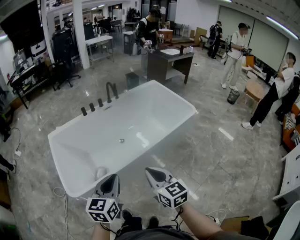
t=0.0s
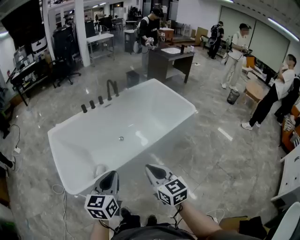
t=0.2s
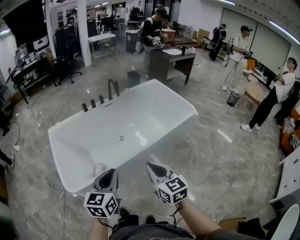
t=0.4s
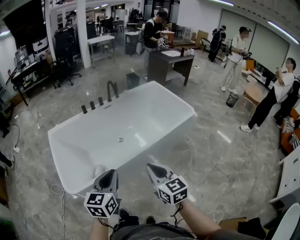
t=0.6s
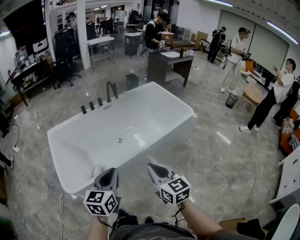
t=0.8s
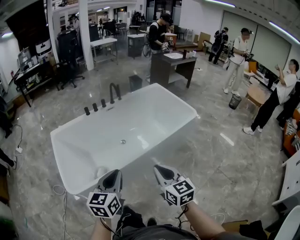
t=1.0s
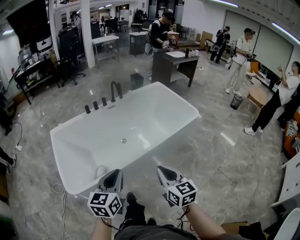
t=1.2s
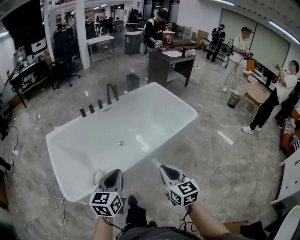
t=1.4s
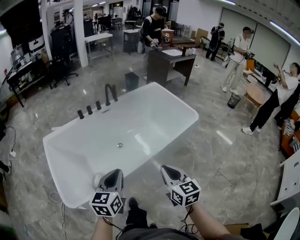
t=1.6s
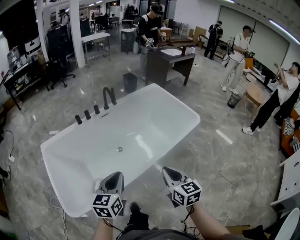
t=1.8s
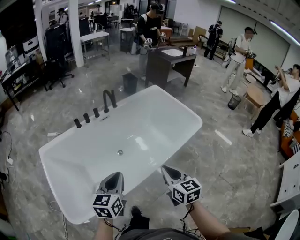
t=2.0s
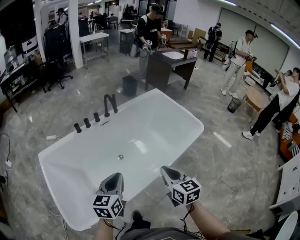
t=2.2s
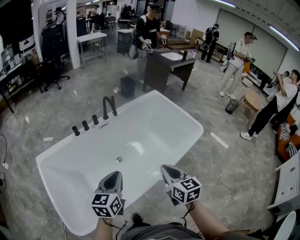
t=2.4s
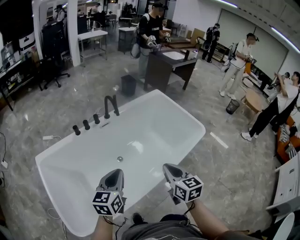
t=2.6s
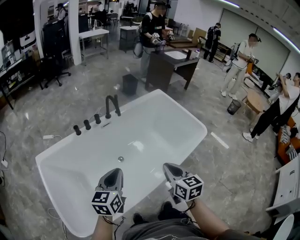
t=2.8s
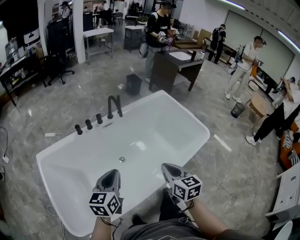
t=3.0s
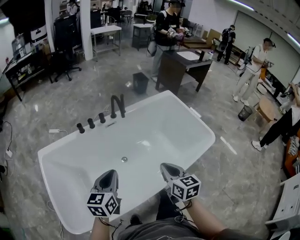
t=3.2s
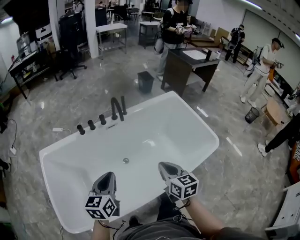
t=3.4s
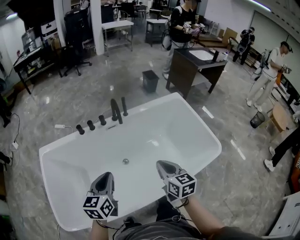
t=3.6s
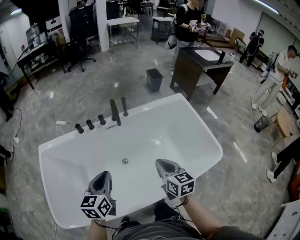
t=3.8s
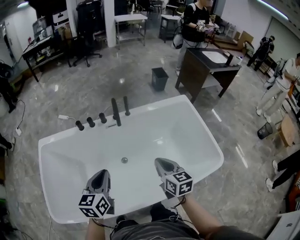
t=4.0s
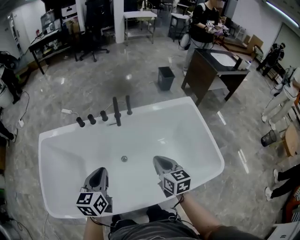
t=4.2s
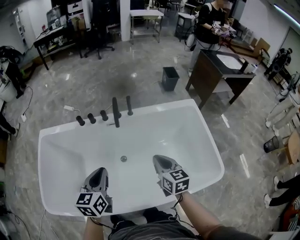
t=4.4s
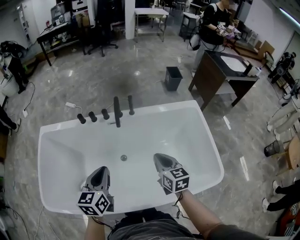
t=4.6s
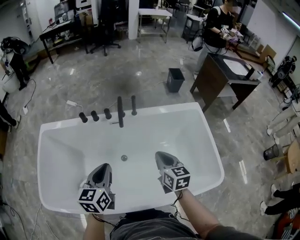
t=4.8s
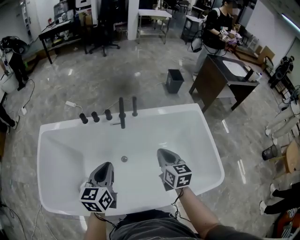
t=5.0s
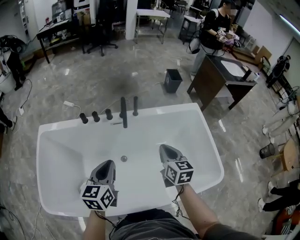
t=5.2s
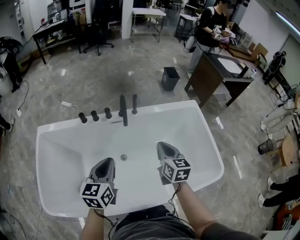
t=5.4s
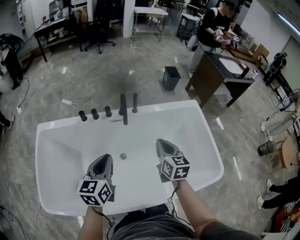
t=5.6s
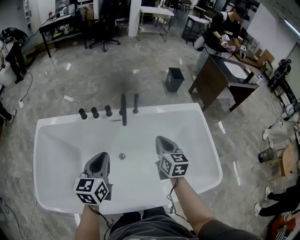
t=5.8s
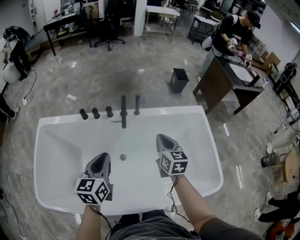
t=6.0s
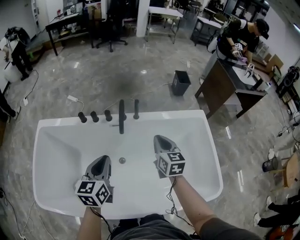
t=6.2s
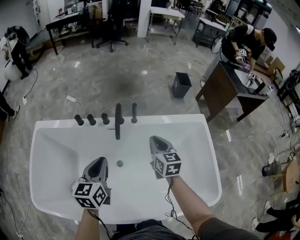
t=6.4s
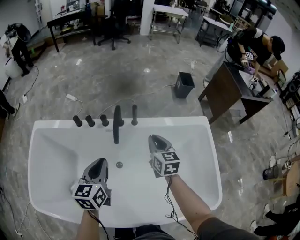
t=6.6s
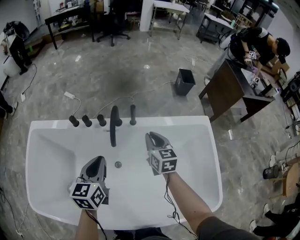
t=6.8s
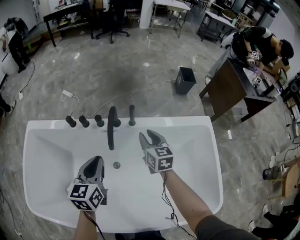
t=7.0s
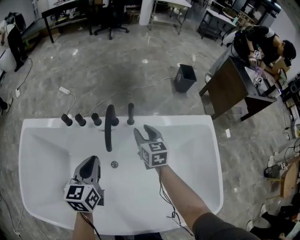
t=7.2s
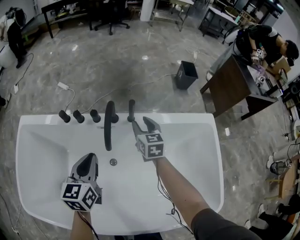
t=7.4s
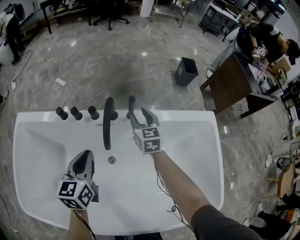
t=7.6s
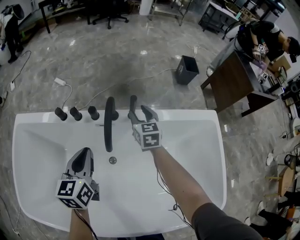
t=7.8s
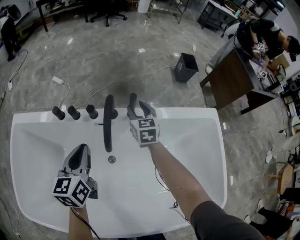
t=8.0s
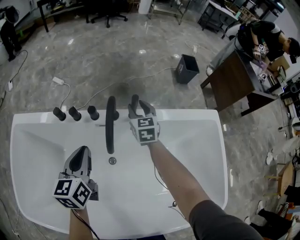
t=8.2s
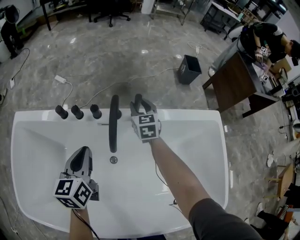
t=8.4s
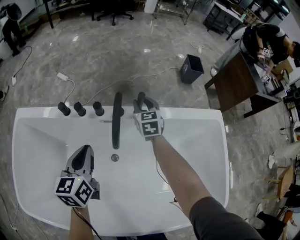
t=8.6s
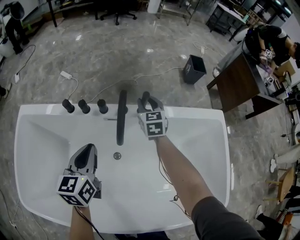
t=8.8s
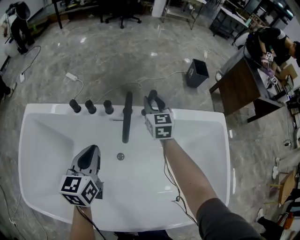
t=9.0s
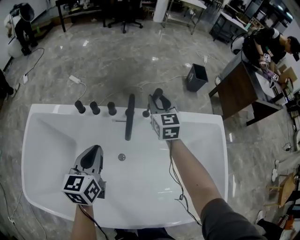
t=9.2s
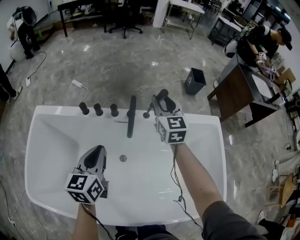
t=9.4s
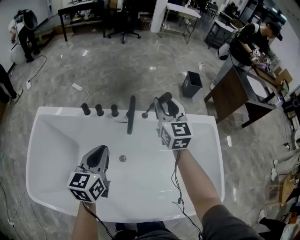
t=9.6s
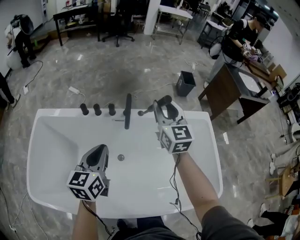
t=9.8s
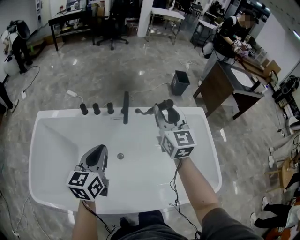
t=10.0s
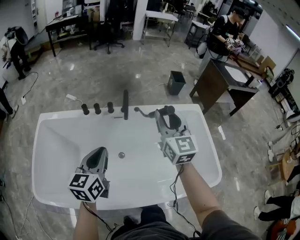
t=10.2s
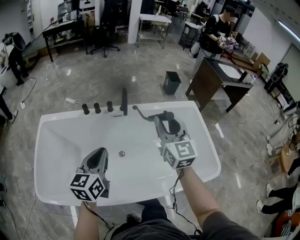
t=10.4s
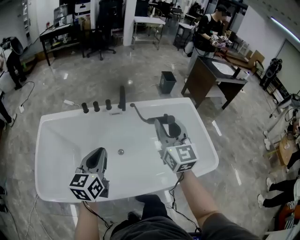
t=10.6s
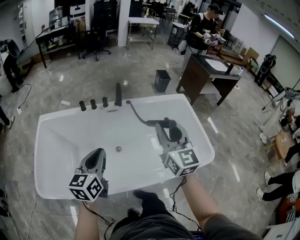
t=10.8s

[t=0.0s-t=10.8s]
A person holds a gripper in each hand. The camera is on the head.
t=0.0s to t=1.6s: The left gripper heads forward, covering some 10 cm, while the right gripper heads forward and to the right, covering approximately 10 cm.
t=1.6s to t=3.0s: Both grippers move forward, roughly 25 cm.
t=3.0s to t=4.6s: The right gripper moves about 30 cm, and rotates about 30 degrees; the left gripper shifts by some 20 cm, and changes its angle by about 30 degrees.
t=4.6s to t=6.2s: The left gripper is displaced forward by roughly 10 cm. The right gripper heads forward, covering some 15 cm.
t=6.2s to t=7.8s: The left gripper travels forward and downward by about 20 cm. Meanwhile the right gripper is displaced forward and downward by roughly 30 cm, and opens its fingers.
t=7.8s to t=9.2s: The left gripper shifts by approximately 5 cm; the right gripper goes roughly 15 cm upward.
t=9.2s to t=10.8s: The right gripper heads backward and upward, covering approximately 50 cm. Meanwhile the left gripper heads backward and upward, covering roughly 30 cm.

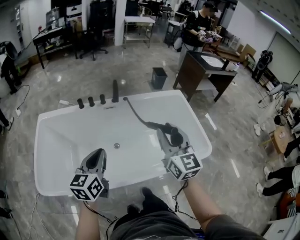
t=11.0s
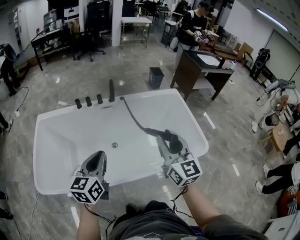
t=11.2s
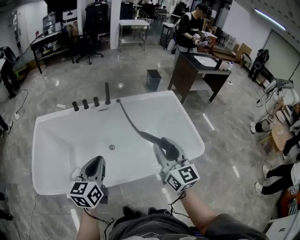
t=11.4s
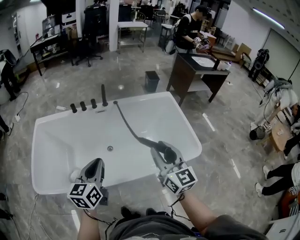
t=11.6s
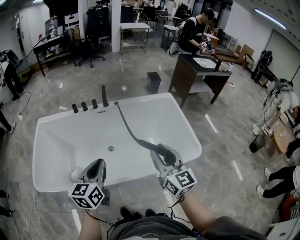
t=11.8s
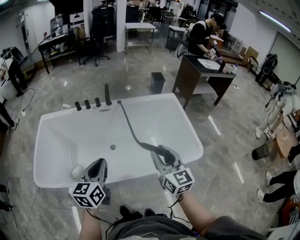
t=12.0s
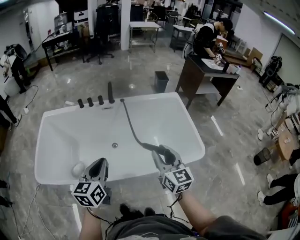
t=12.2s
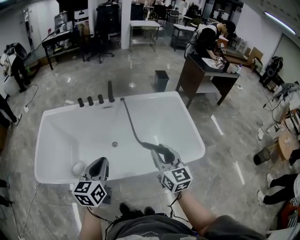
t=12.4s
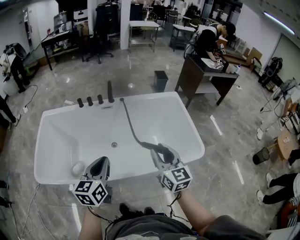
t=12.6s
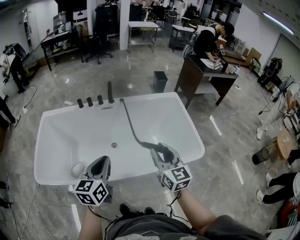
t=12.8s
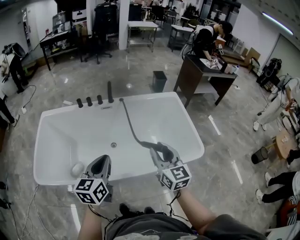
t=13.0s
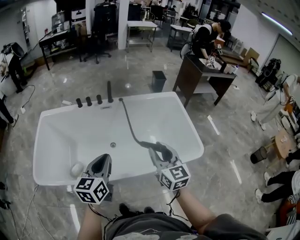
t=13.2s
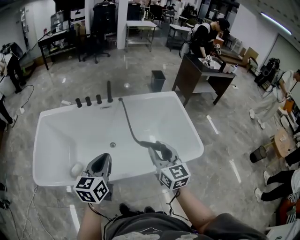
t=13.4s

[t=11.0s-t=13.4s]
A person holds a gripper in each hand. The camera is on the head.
t=11.0s to t=12.2s: The left gripper heads to the right and backward, covering about 15 cm. Meanwhile the right gripper is displaced backward, to the right and downward by about 15 cm.
t=12.2s to t=13.4s: The grippers move only a little.

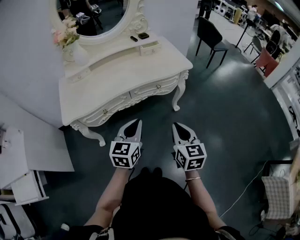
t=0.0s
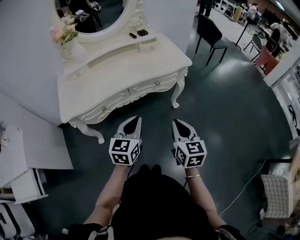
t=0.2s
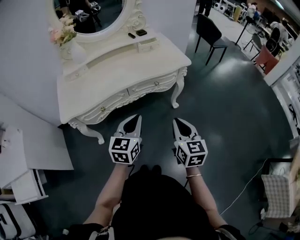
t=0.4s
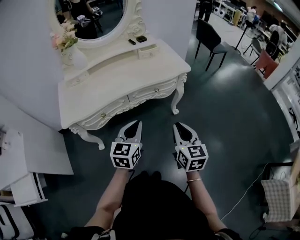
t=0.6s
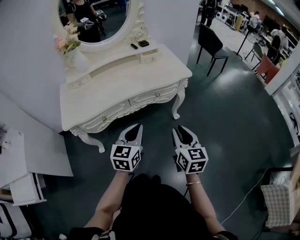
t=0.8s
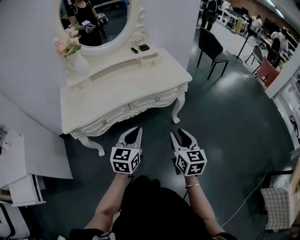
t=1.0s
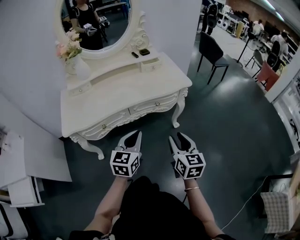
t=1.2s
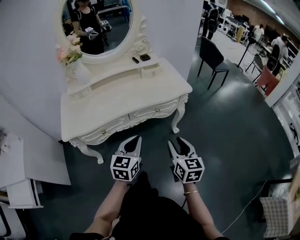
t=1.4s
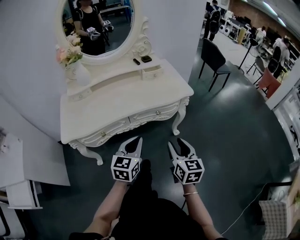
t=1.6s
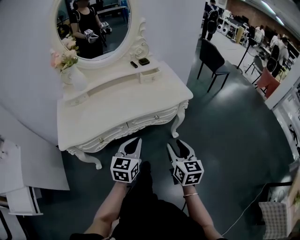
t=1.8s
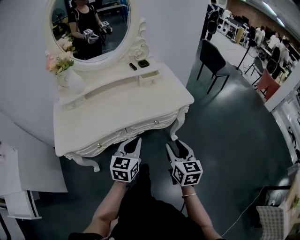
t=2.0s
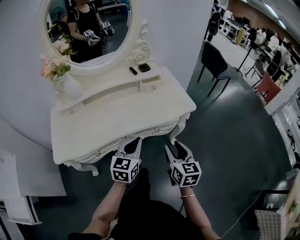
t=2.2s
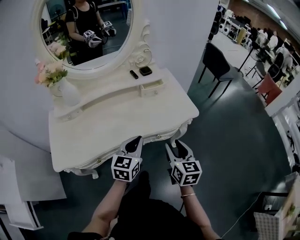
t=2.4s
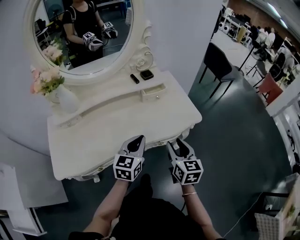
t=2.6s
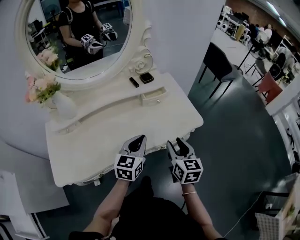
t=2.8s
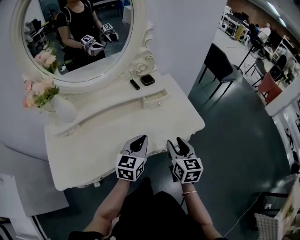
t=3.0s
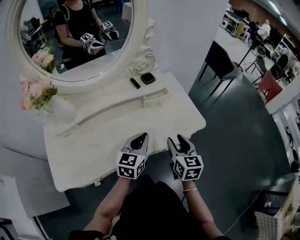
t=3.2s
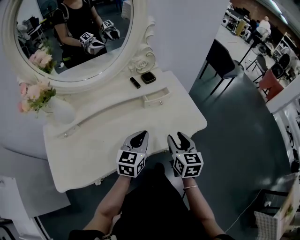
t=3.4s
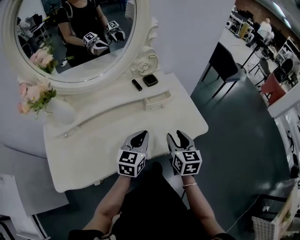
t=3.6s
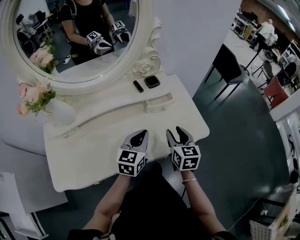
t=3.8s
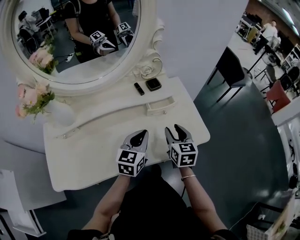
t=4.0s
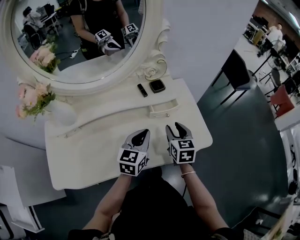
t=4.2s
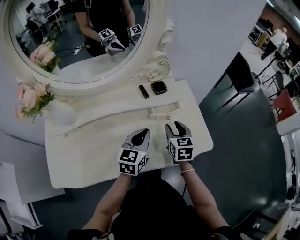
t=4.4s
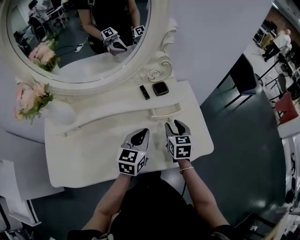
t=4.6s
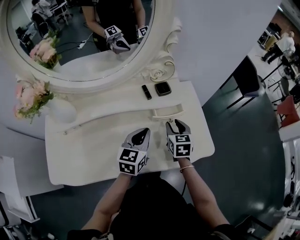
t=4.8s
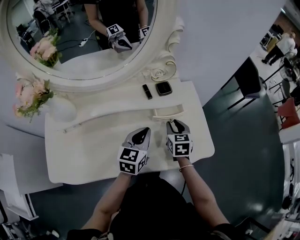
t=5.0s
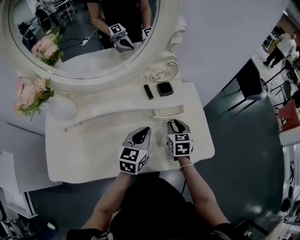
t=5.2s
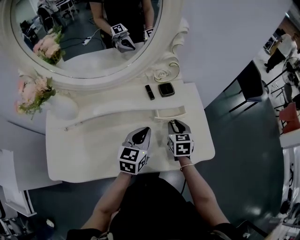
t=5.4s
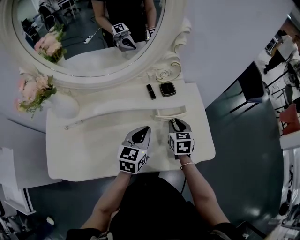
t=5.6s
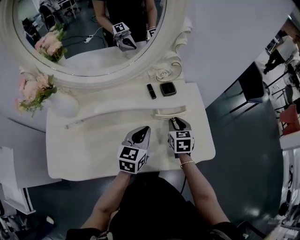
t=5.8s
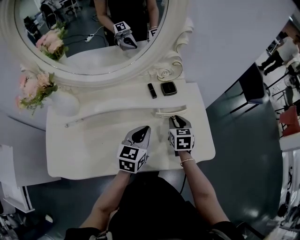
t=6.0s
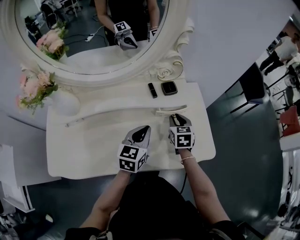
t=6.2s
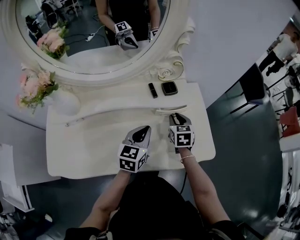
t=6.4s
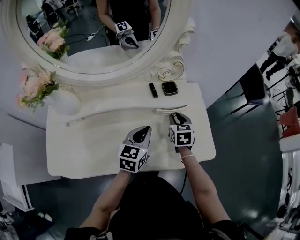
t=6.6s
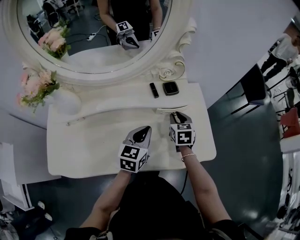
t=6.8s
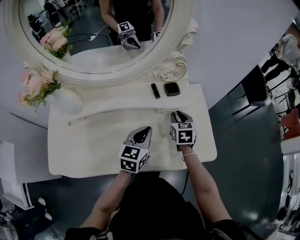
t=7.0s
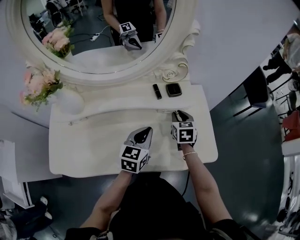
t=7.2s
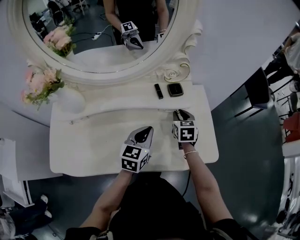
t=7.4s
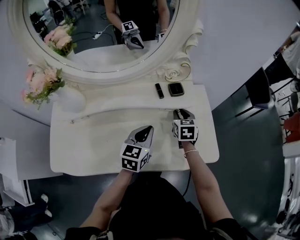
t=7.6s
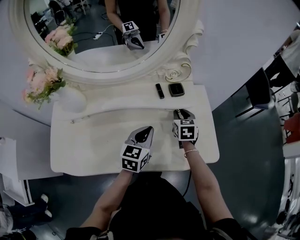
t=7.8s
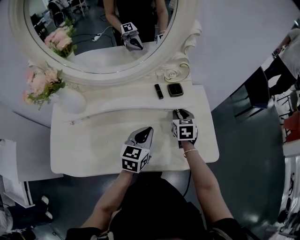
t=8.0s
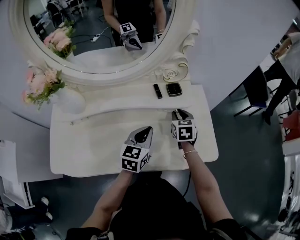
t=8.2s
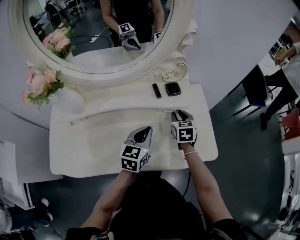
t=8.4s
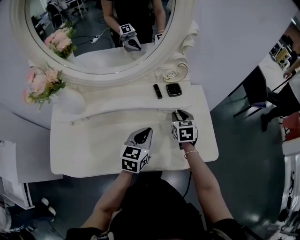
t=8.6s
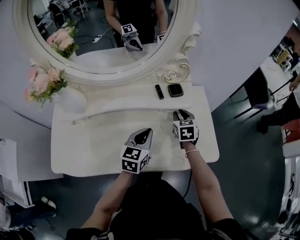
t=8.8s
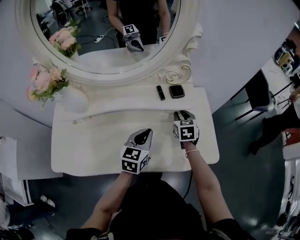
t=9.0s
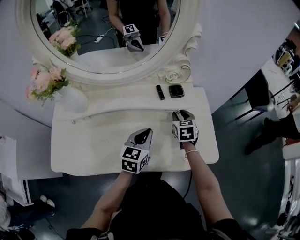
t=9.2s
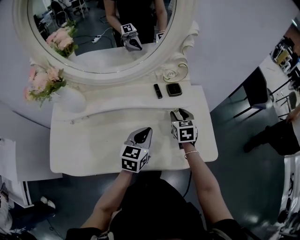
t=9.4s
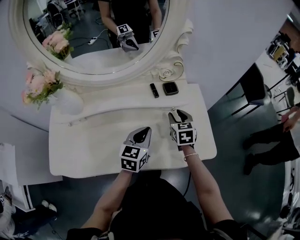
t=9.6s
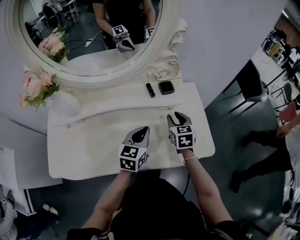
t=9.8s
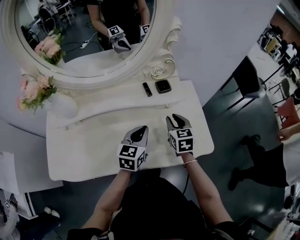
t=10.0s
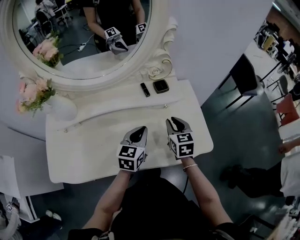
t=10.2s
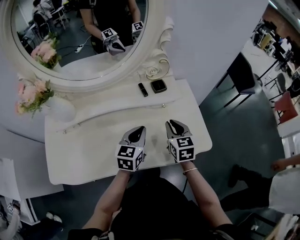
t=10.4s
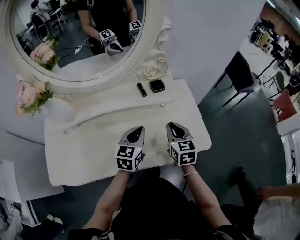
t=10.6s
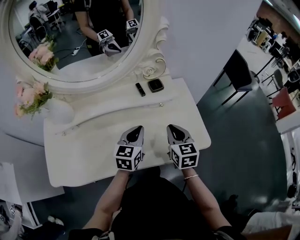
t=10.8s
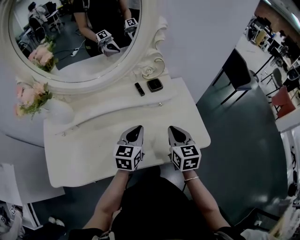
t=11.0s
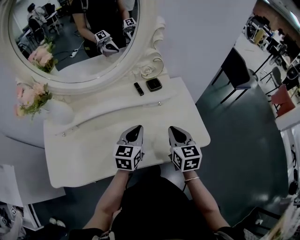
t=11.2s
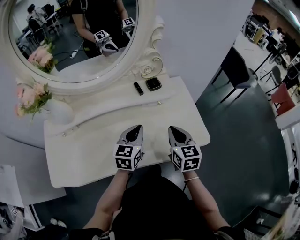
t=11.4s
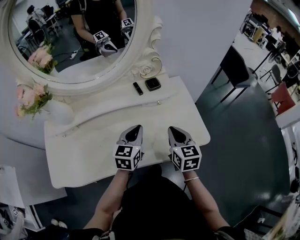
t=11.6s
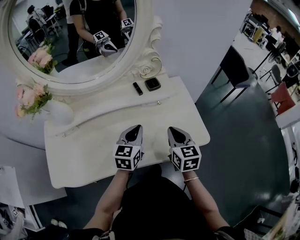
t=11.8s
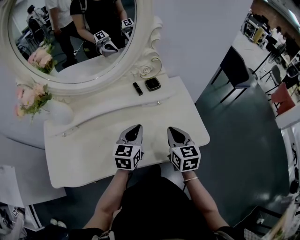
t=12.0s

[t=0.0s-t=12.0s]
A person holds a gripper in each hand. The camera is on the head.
t=0.0s to t=1.6s: The two grippers go approximately 5 cm forward. The right gripper opens up.
t=1.6s to t=3.0s: Both grippers travel together forward, roughly 30 cm.
t=3.0s to t=4.4s: The left gripper is displaced forward by approximately 10 cm. The right gripper is displaced forward by about 20 cm.
t=4.4s to t=6.0s: The right gripper moves forward, approximately 5 cm.
t=6.0s to t=7.6s: There are only small adjustments of the grippers.
t=7.6s to t=9.0s: Both grippers stay about where they are.
t=9.0s to t=10.4s: The right gripper travels backward and upward by approximately 10 cm.
t=10.4s to t=12.0s: The right gripper heads backward, covering approximately 5 cm.
